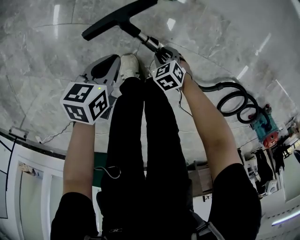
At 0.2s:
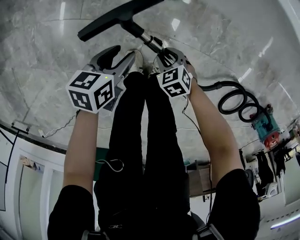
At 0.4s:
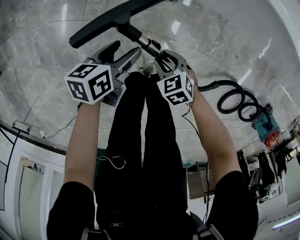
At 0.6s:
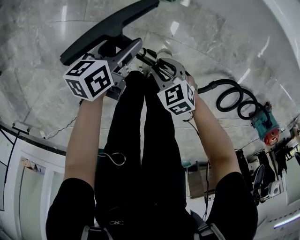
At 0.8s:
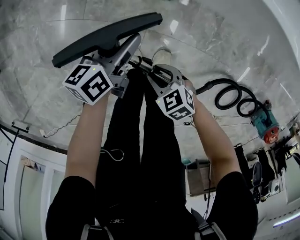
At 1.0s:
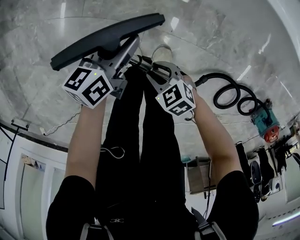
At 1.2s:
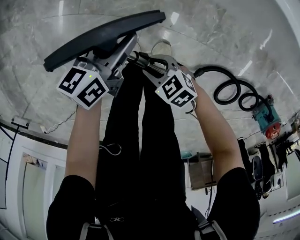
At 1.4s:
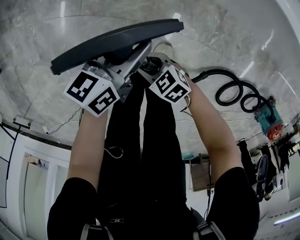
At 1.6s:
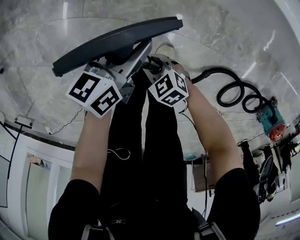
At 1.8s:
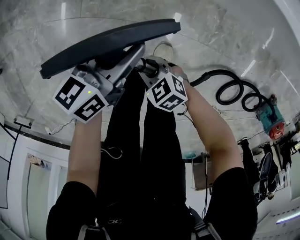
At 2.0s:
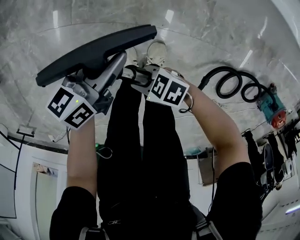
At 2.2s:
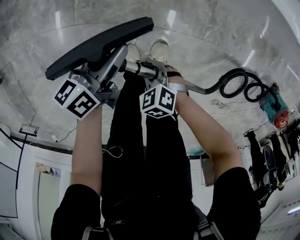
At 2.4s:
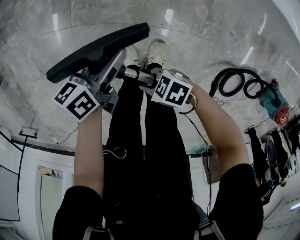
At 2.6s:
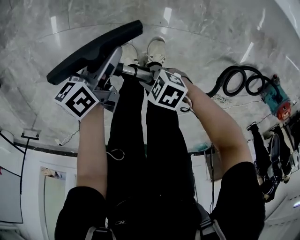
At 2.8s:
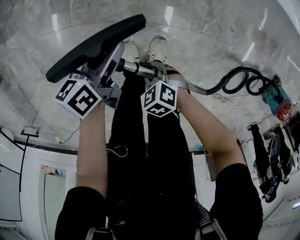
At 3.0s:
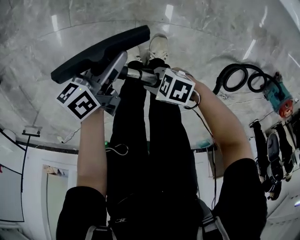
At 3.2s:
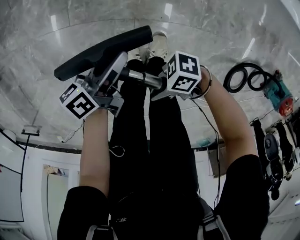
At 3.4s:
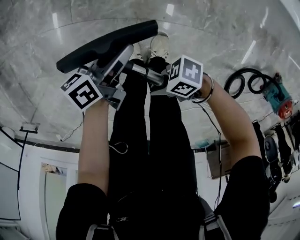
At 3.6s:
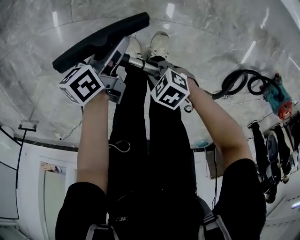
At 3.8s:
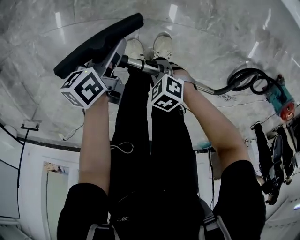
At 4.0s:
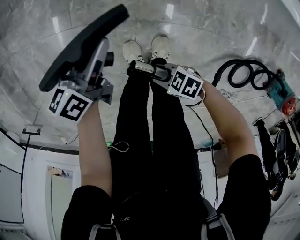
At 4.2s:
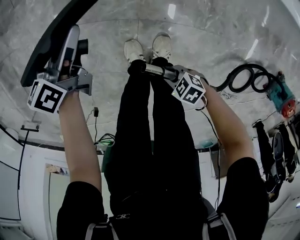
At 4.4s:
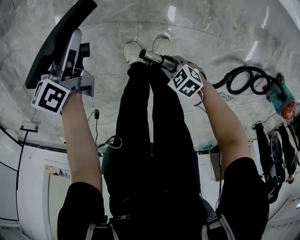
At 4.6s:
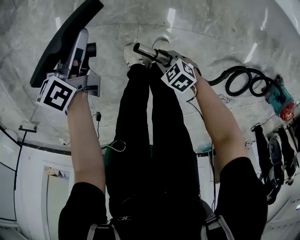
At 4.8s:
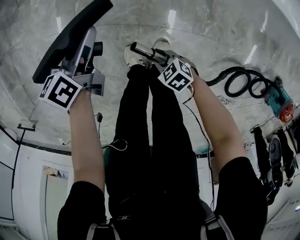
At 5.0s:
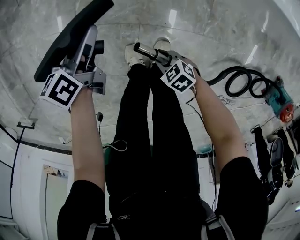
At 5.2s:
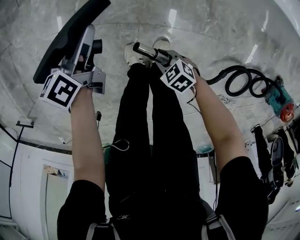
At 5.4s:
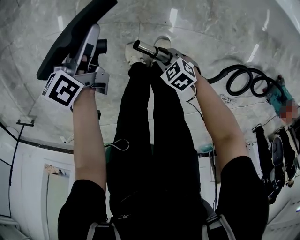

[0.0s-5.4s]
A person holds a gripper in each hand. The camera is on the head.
0.0s to 1.4s: The grippers both shift upward by approximately 15 cm. The left gripper rotates roughly 30 degrees, and opens up. The right gripper swivels some 30 degrees.
1.4s to 2.8s: The right gripper swivels roughly 20 degrees, and closes up.
2.8s to 4.0s: The right gripper travels upward and back again, roughly 10 cm each way, and rotates approximately 30 degrees; the left gripper changes place by about 5 cm.
4.0s to 5.4s: The right gripper shifts by some 10 cm, and swivels roughly 30 degrees.

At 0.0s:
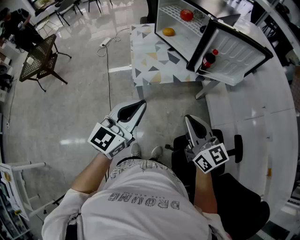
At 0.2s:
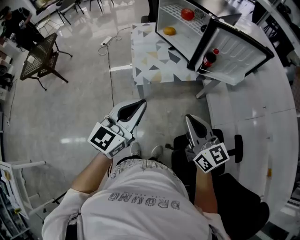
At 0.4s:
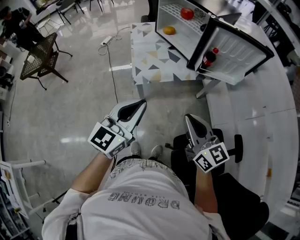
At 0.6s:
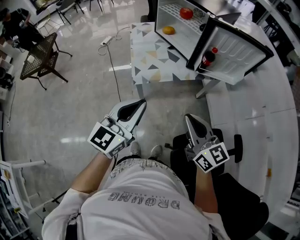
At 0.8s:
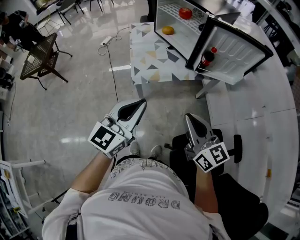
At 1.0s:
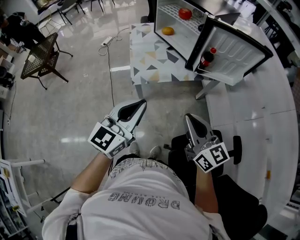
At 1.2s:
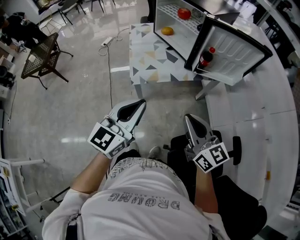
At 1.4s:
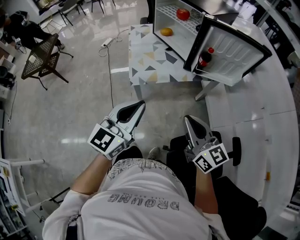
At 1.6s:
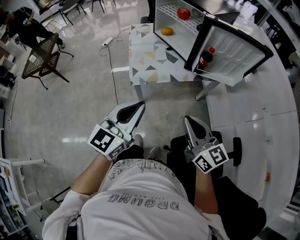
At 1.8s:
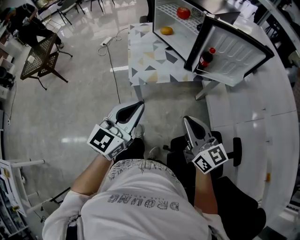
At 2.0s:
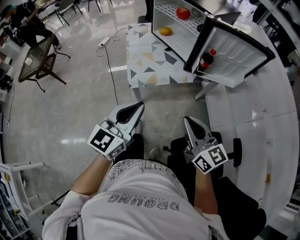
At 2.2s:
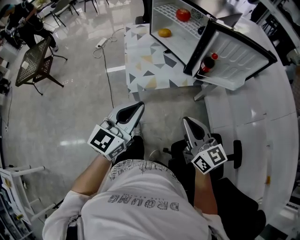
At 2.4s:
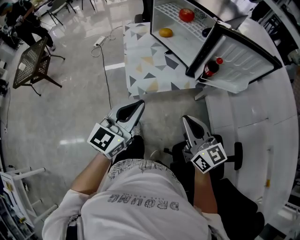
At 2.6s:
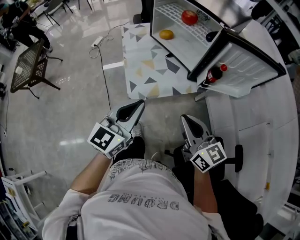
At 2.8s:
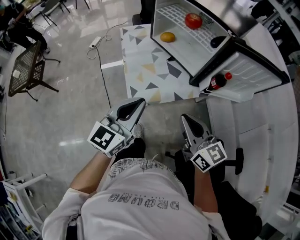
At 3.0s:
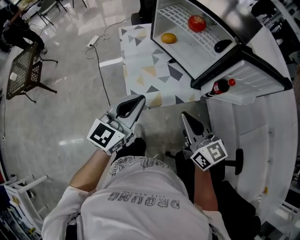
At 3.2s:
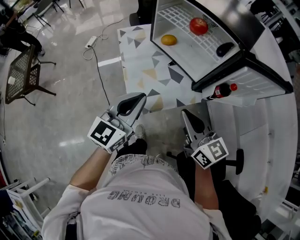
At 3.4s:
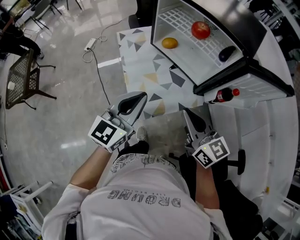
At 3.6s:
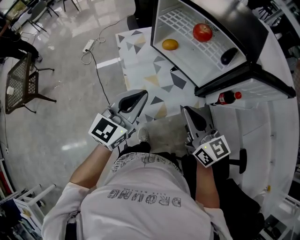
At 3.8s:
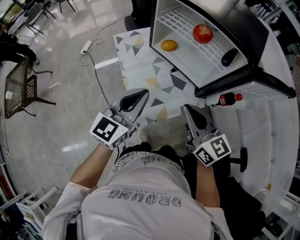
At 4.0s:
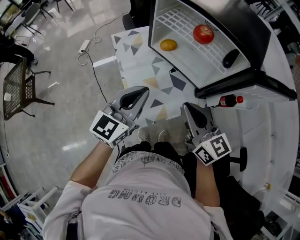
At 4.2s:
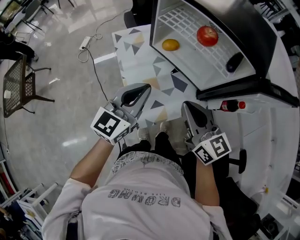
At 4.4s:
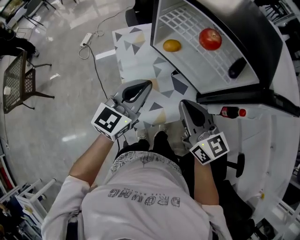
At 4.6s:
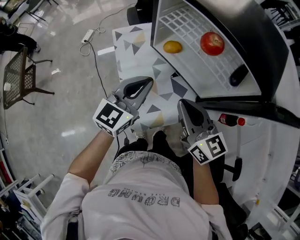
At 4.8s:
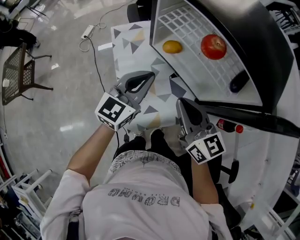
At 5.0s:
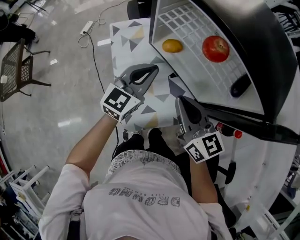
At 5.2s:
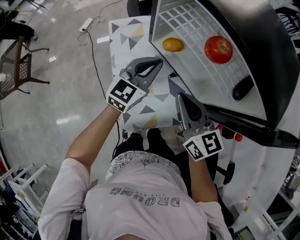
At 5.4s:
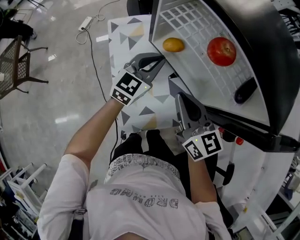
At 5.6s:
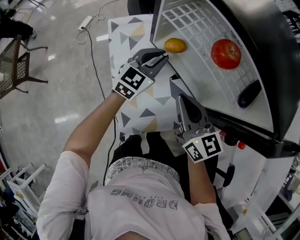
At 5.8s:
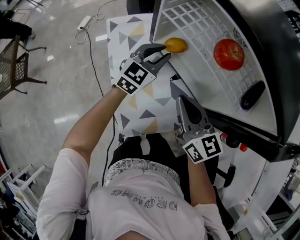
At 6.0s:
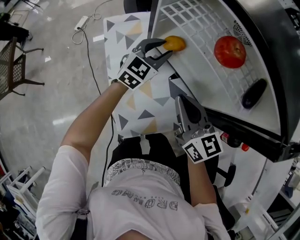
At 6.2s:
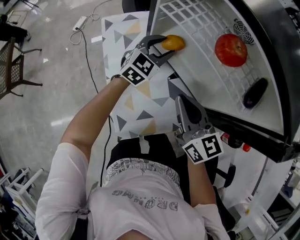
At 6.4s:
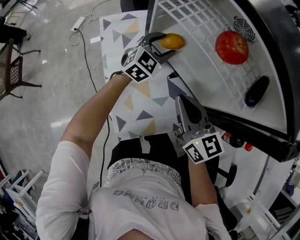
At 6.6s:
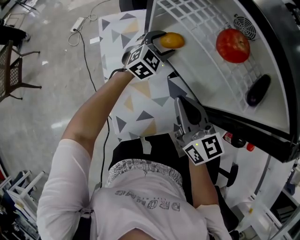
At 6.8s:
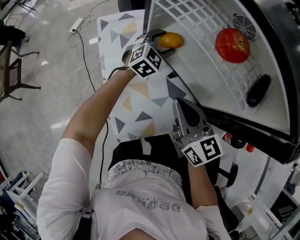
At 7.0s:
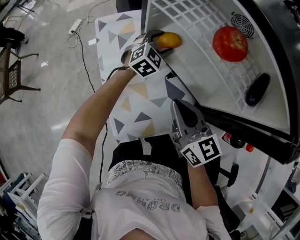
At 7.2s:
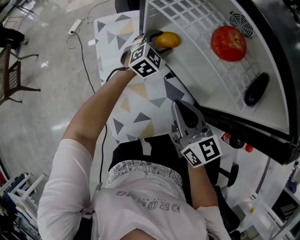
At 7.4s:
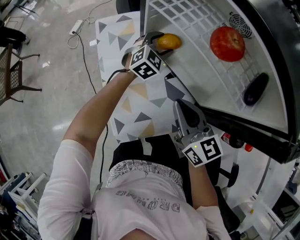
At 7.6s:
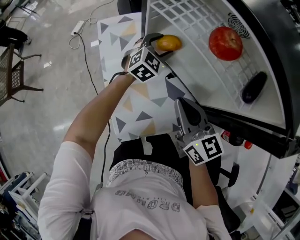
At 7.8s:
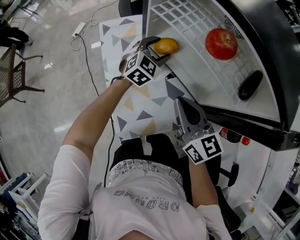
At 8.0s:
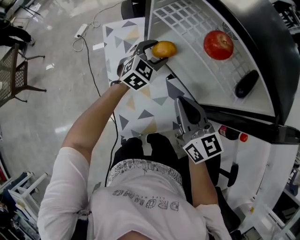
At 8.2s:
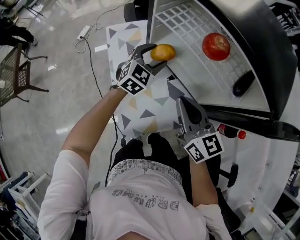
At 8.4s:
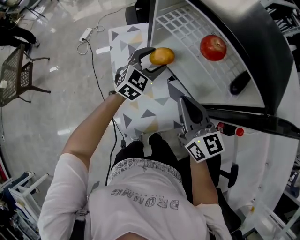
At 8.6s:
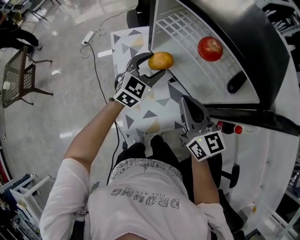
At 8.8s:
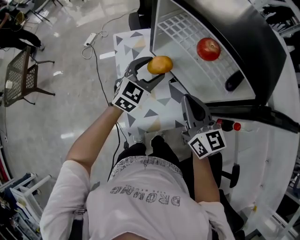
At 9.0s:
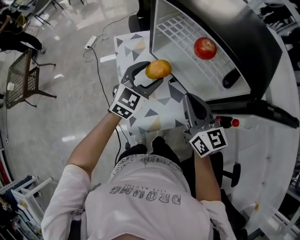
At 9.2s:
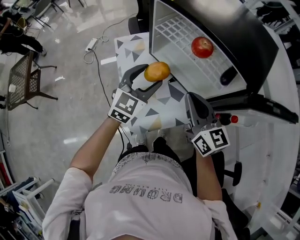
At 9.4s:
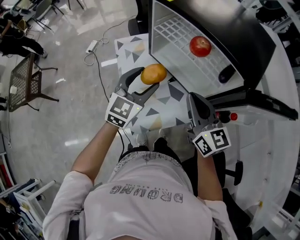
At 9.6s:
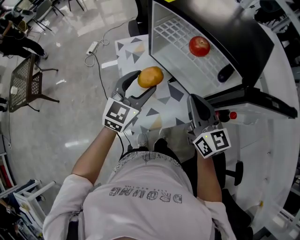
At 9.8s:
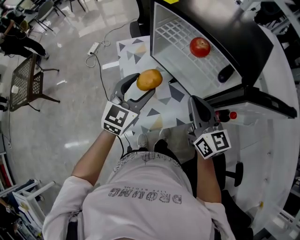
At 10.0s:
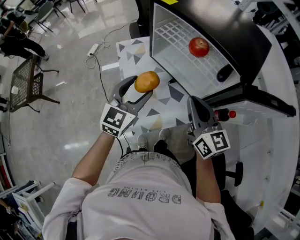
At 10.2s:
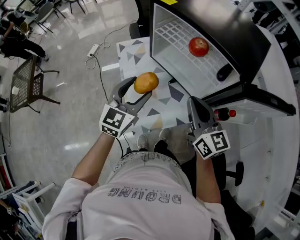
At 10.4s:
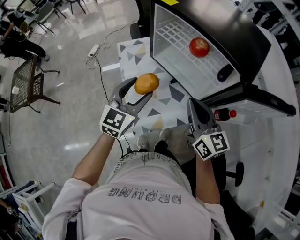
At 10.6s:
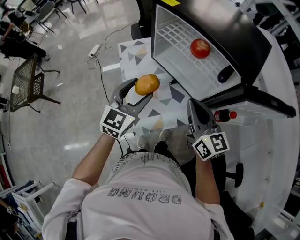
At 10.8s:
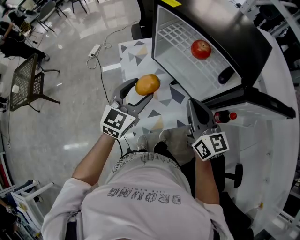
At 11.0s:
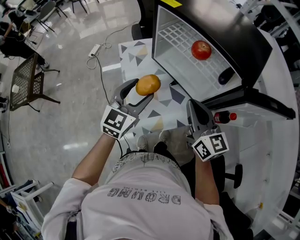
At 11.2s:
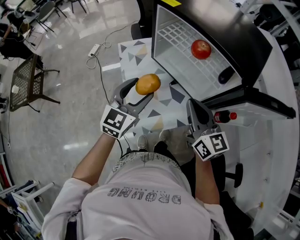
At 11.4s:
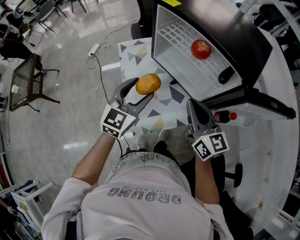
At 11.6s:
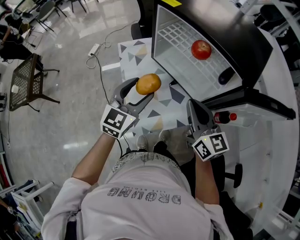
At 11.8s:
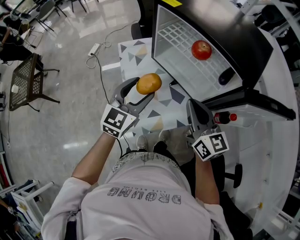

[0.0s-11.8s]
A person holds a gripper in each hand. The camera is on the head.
0.0s to 1.4s: The grippers move only a little.
1.4s to 3.0s: The two grippers go roughly 25 cm forward.
3.0s to 4.4s: Both grippers travel together forward, roughly 20 cm.
4.4s to 6.0s: The right gripper is displaced downward and forward by some 15 cm, while the left gripper shifts about 25 cm forward and downward, and opens its fingers.
6.0s to 7.4s: The left gripper is displaced downward by roughly 5 cm, and opens.
7.4s to 8.8s: The right gripper heads upward, covering roughly 10 cm; the left gripper shifts approximately 20 cm upward, backward and to the left.
8.8s to 10.4s: The right gripper shifts by about 5 cm. The left gripper is displaced backward and upward by roughly 15 cm.
10.4s to 11.8s: The two grippers keep their place.

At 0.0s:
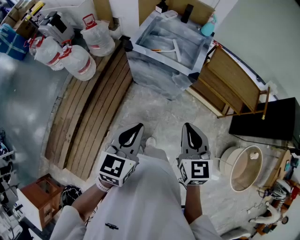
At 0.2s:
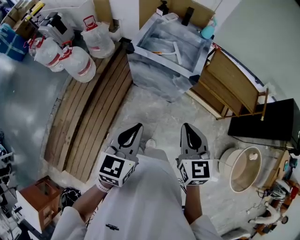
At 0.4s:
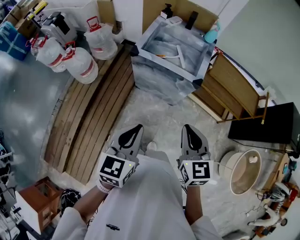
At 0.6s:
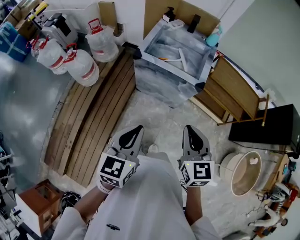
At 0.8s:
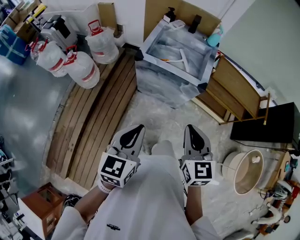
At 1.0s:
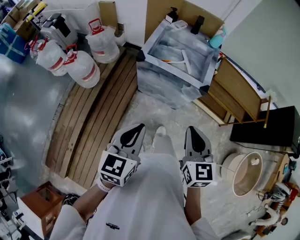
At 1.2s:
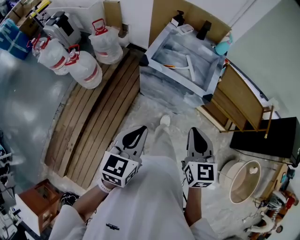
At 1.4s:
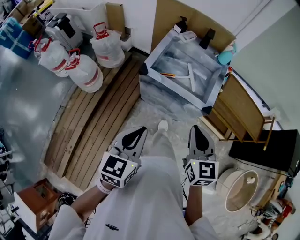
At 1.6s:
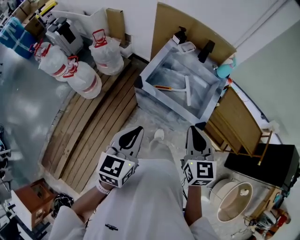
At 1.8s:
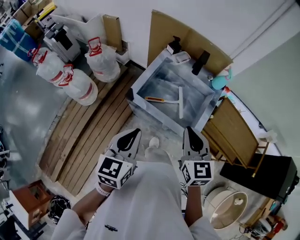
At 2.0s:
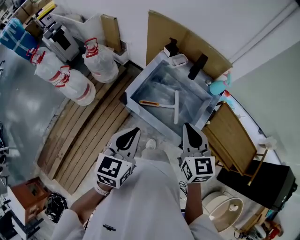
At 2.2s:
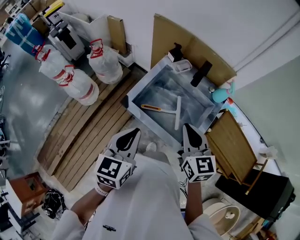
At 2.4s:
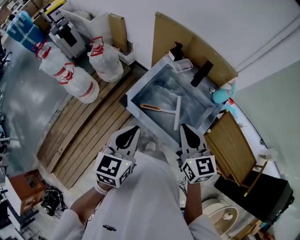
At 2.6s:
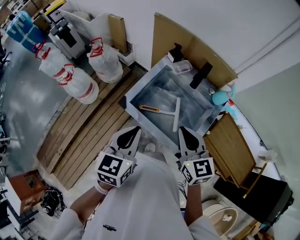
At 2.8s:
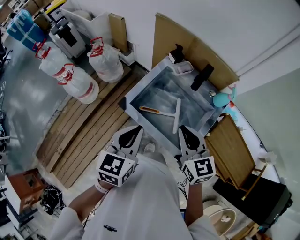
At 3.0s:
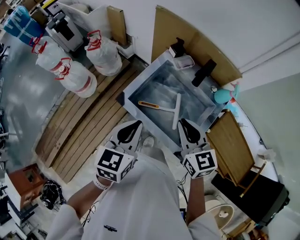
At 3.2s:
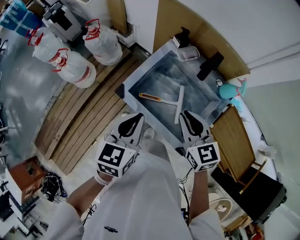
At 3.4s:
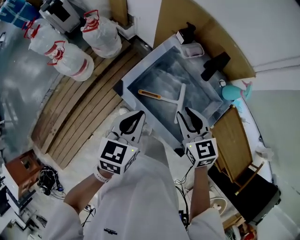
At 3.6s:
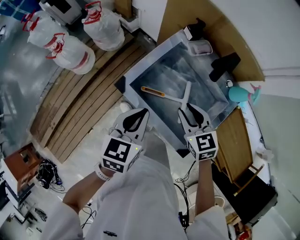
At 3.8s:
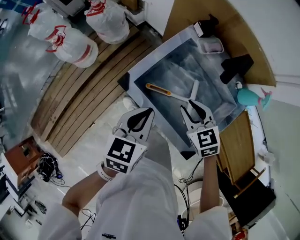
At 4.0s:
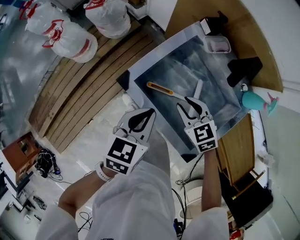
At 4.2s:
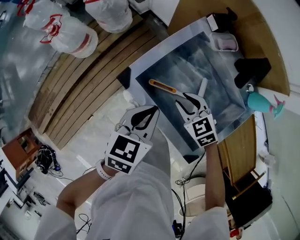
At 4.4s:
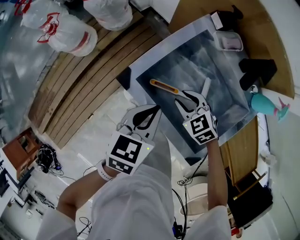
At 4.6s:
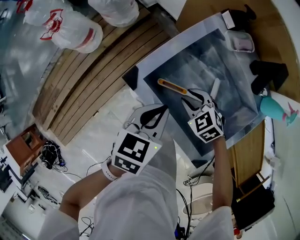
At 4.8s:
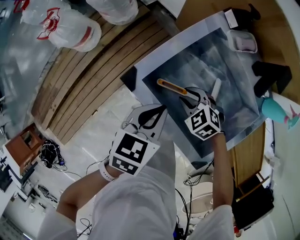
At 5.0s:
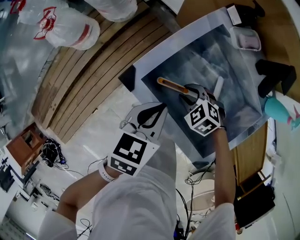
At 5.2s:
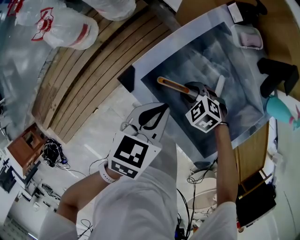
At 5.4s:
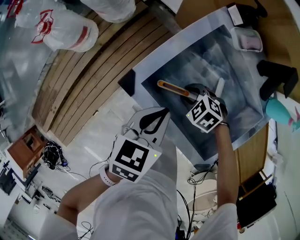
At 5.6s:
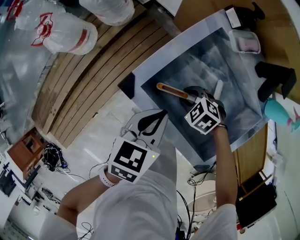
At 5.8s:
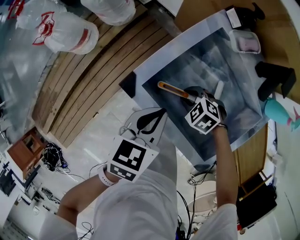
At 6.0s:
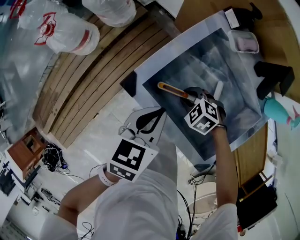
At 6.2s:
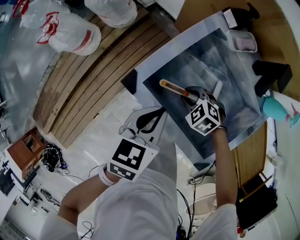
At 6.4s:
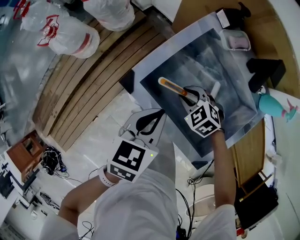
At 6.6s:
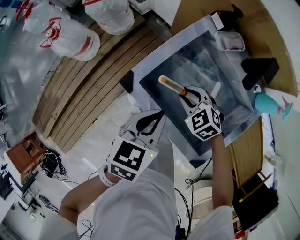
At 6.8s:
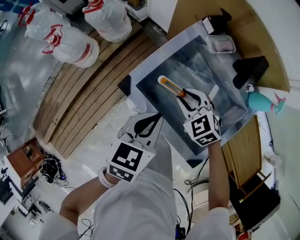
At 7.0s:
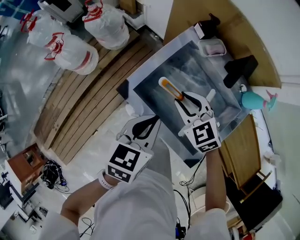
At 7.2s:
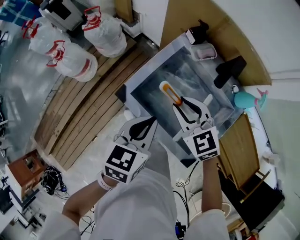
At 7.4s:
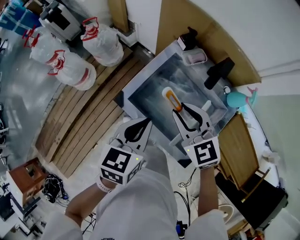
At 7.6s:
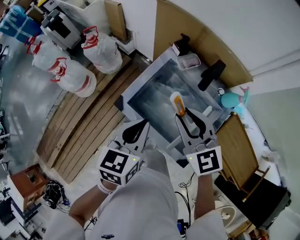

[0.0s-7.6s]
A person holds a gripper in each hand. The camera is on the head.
0.0s to 1.6s: The two grippers go approximately 25 cm forward.
1.6s to 3.0s: The left gripper travels forward and to the right by about 20 cm, while the right gripper shifts about 20 cm forward, and swivels roughly 20 degrees.
3.0s to 4.6s: The right gripper heads downward, covering roughly 30 cm, points its fingers about 40 degrees further downward, and opens, while the left gripper heads downward, covering about 20 cm, and changes its angle by about 20 degrees.
4.6s to 6.0s: The right gripper travels downward by approximately 5 cm.
6.0s to 7.6s: The right gripper heads upward, covering roughly 40 cm, and points its fingers roughly 50 degrees further upward. Meanwhile the left gripper goes some 20 cm upward.
